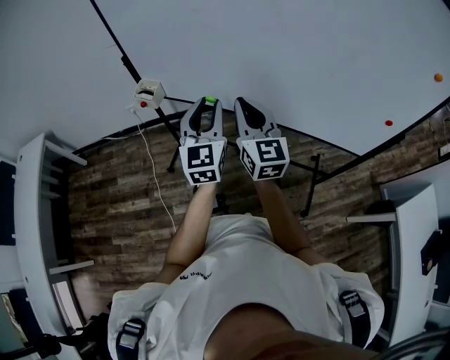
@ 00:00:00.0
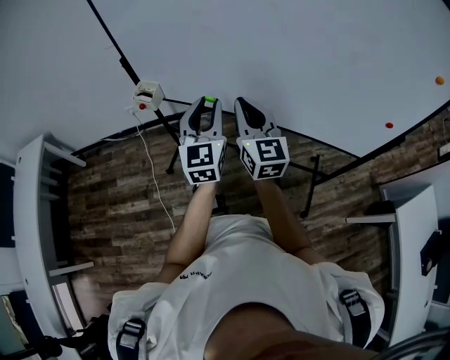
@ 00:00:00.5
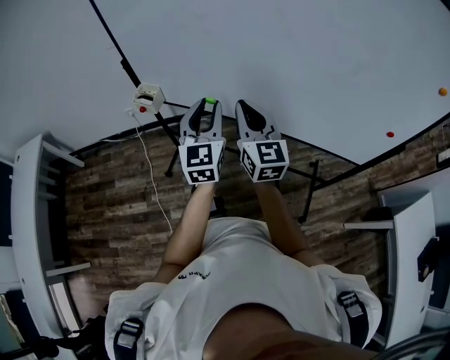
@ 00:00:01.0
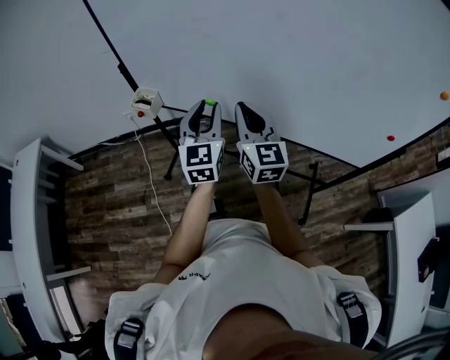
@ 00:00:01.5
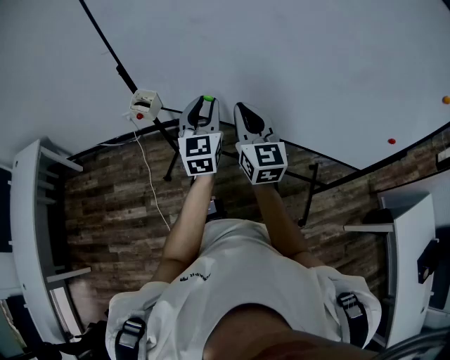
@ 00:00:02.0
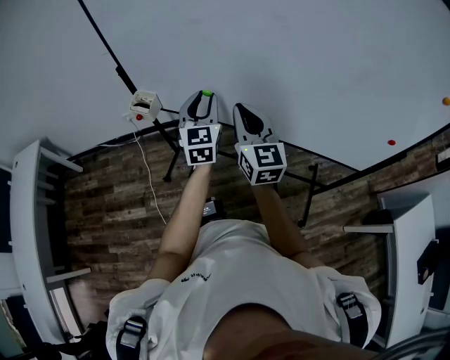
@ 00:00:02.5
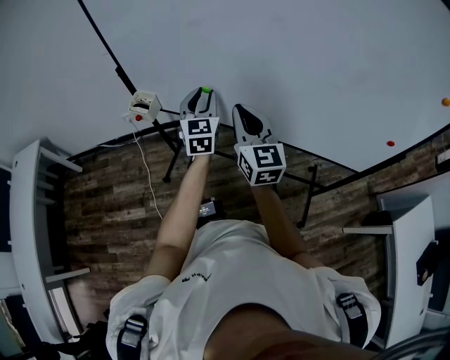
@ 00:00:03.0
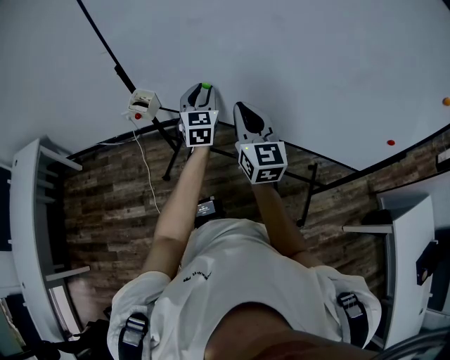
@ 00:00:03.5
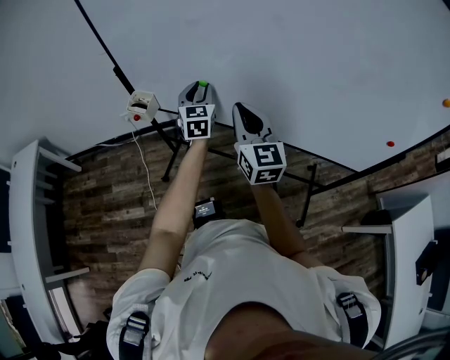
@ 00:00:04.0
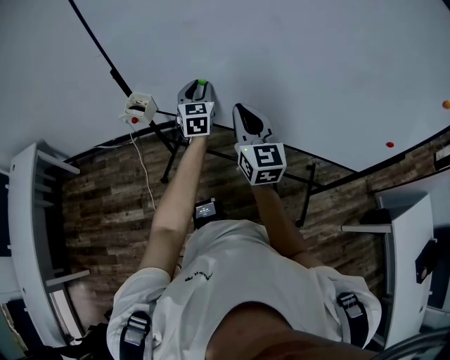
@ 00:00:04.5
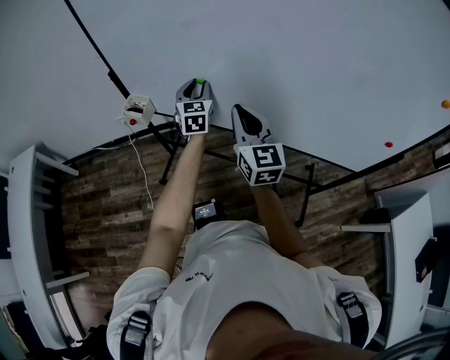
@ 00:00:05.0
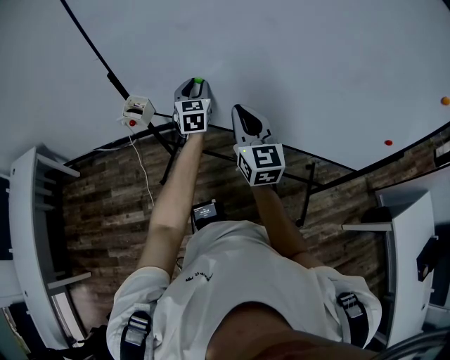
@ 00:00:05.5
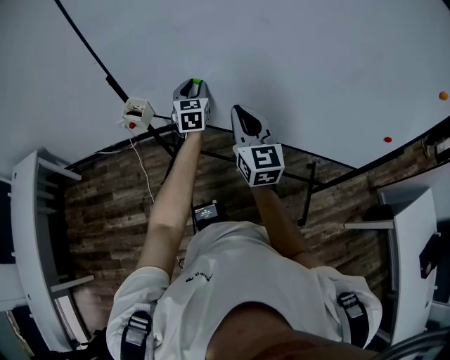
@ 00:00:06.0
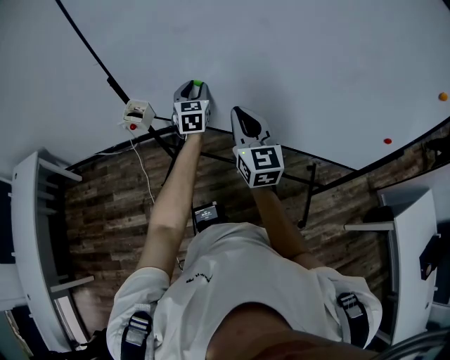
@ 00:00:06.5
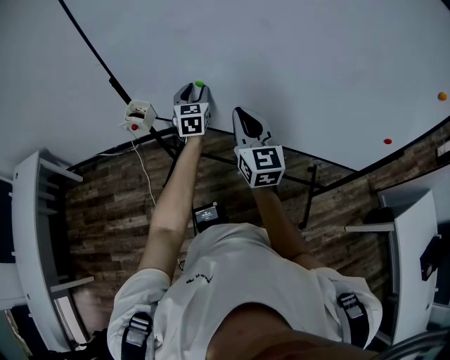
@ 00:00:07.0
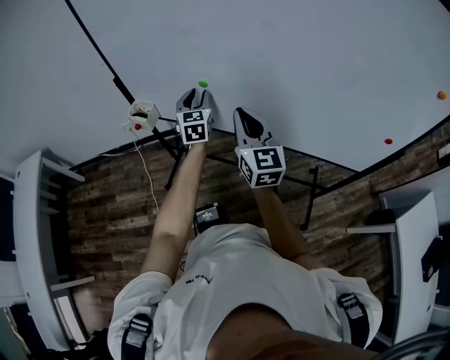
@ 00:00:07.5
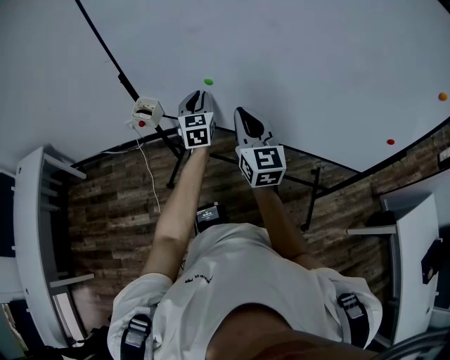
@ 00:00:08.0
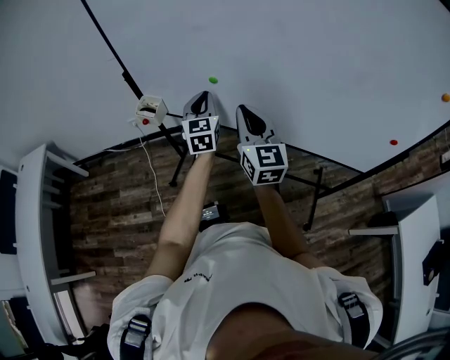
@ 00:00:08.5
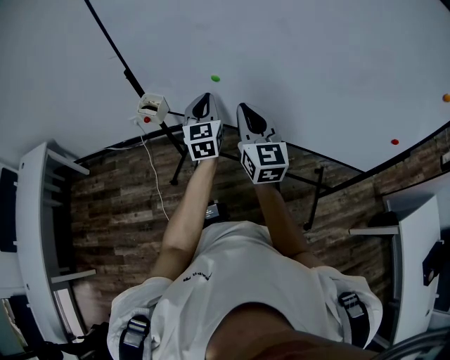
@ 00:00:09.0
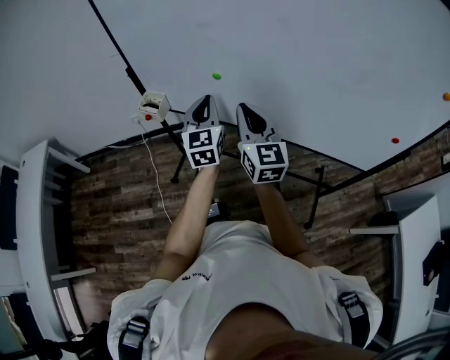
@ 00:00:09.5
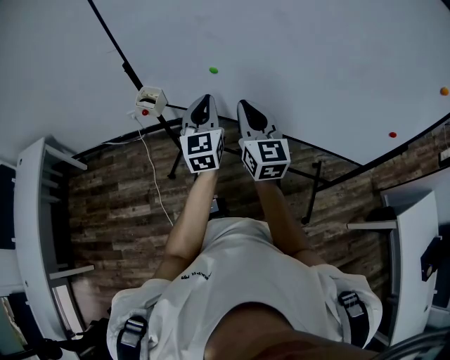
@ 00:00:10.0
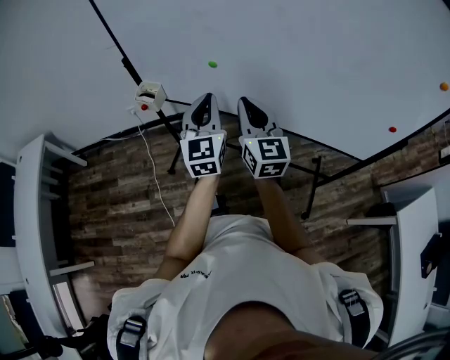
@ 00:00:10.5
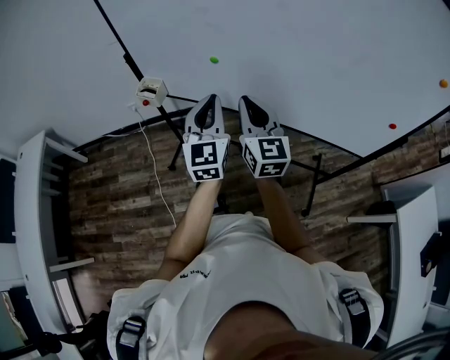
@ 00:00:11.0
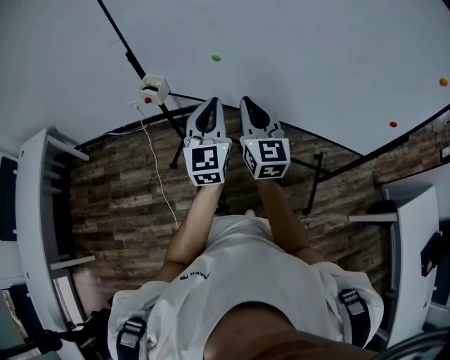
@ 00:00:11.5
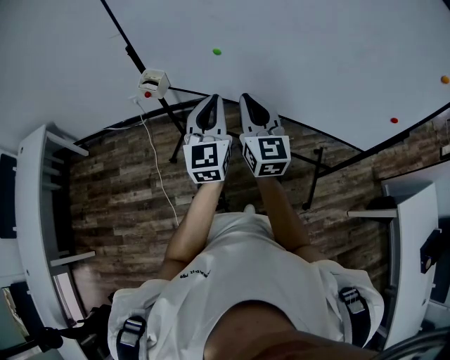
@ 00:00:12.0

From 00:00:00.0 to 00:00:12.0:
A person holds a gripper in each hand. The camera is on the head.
From 00:00:00.0 to 00:00:02.0: The left gripper travels forward by some 10 cm. The right gripper is displaced forward by approximately 5 cm.
From 00:00:02.0 to 00:00:04.0: The left gripper travels forward and downward by roughly 10 cm.
From 00:00:04.0 to 00:00:06.0: The grippers stay close to where they were, moving slightly.
From 00:00:06.0 to 00:00:08.0: The left gripper changes place by some 5 cm.
From 00:00:08.0 to 00:00:10.0: The left gripper moves backward and upward, approximately 15 cm.
From 00:00:10.0 to 00:00:12.0: The left gripper heads backward, covering some 10 cm.

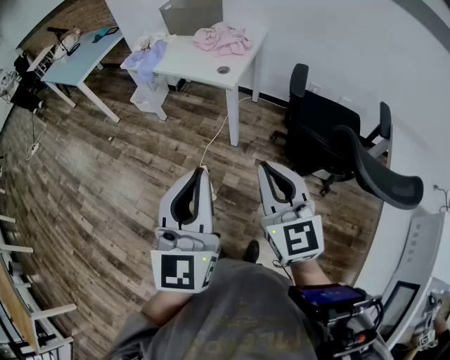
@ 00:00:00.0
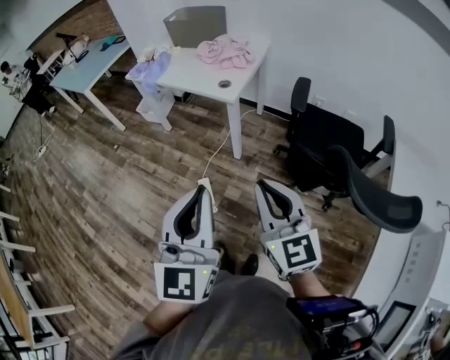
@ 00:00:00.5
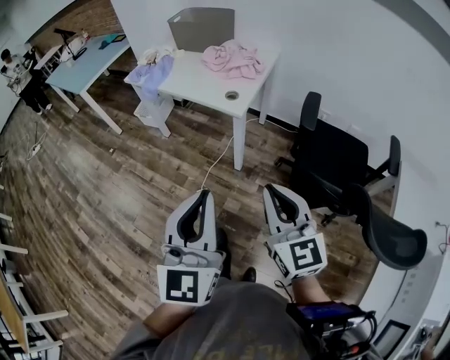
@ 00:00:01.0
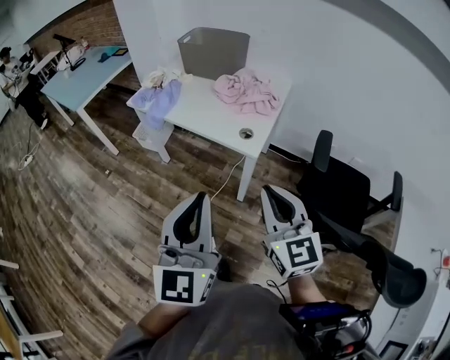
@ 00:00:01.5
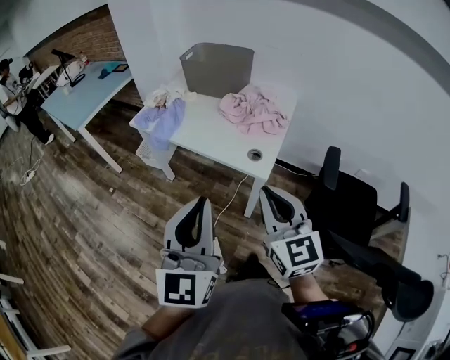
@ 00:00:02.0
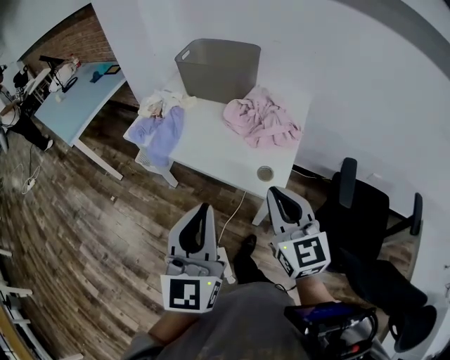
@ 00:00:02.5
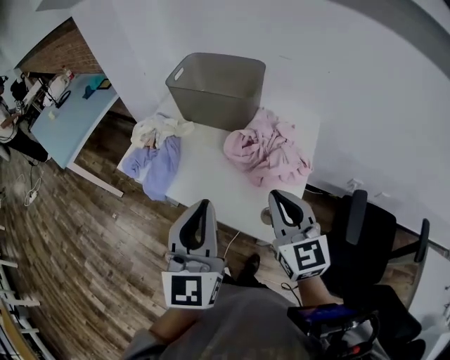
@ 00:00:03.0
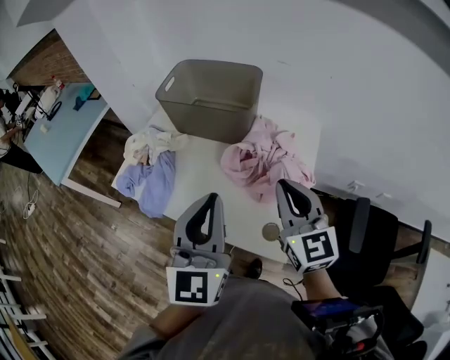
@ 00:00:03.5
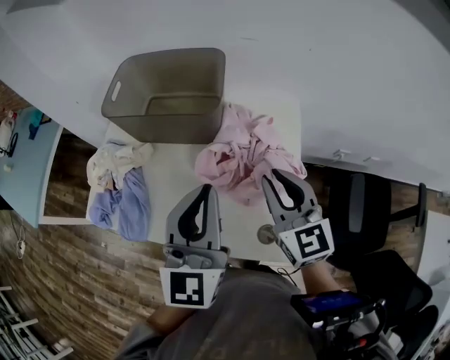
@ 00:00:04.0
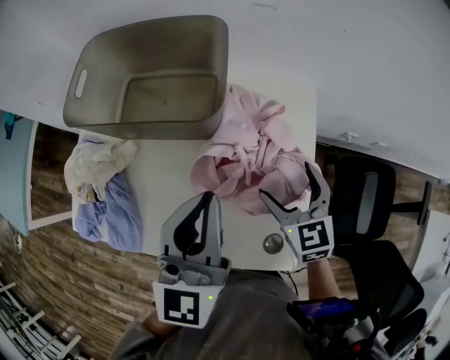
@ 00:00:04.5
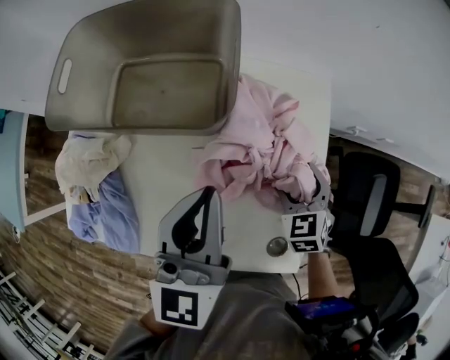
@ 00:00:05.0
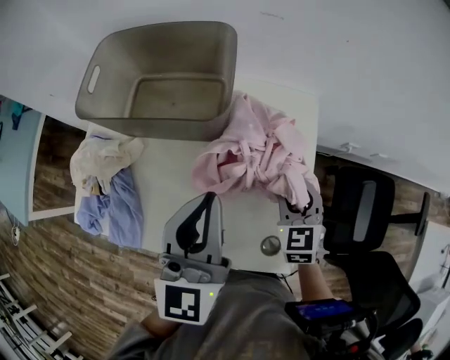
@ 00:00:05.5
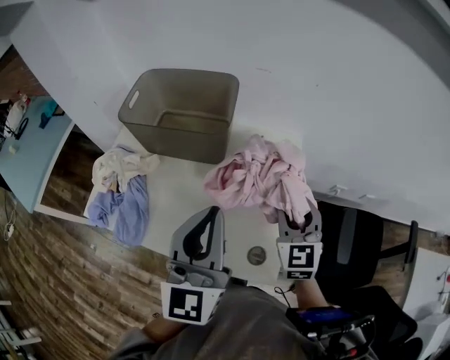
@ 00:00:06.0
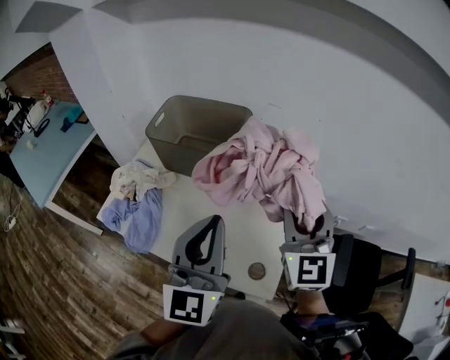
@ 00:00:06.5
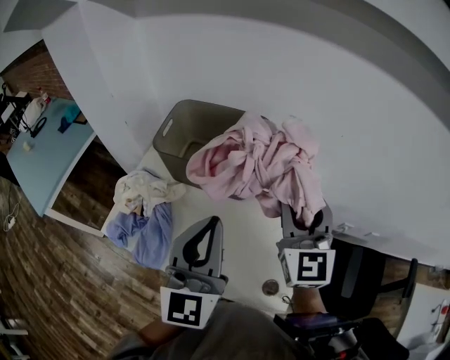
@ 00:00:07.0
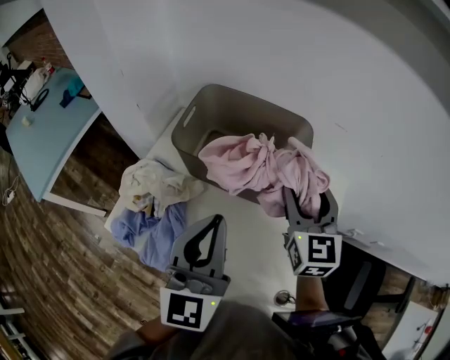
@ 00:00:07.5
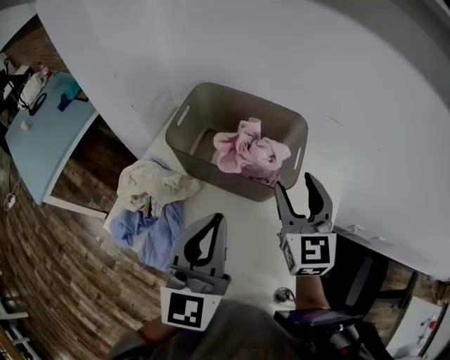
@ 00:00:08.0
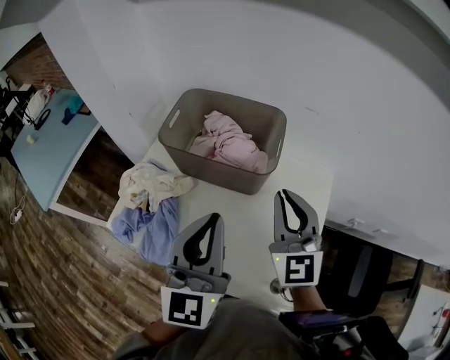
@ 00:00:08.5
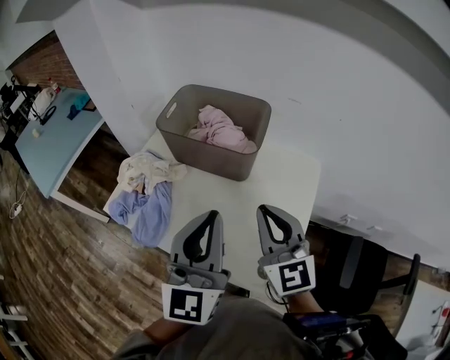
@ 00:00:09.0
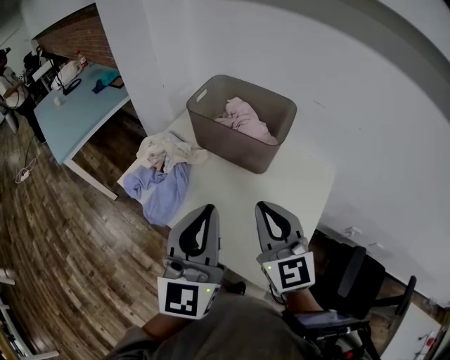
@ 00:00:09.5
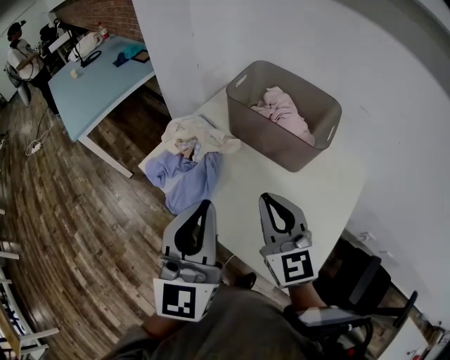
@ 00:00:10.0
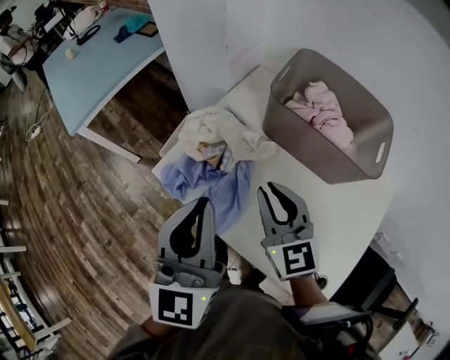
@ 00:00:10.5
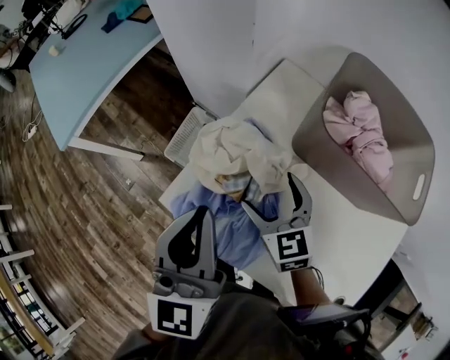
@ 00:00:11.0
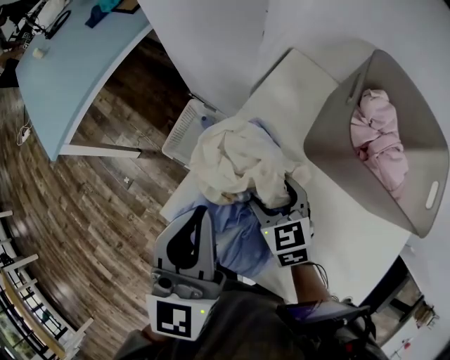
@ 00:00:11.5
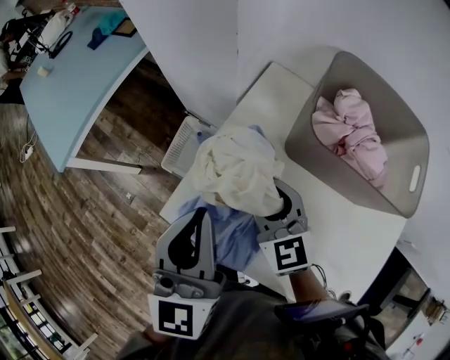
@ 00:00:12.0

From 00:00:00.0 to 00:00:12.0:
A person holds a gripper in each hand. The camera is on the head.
From 00:00:00.0 to 00:00:02.0: The two grippers go about 30 cm forward.
From 00:00:02.0 to 00:00:04.0: The pair of grippers is taken forward, approximately 50 cm.
From 00:00:04.0 to 00:00:06.0: The left gripper reaches approximately 10 cm forward, then returns. Meanwhile the right gripper travels to the right by approximately 5 cm, goes downward and returns, some 20 cm each way, and opens, then closes again.
From 00:00:06.0 to 00:00:08.0: The right gripper goes some 25 cm to the left, forward and upward, while the left gripper goes approximately 15 cm to the left and forward.
From 00:00:08.0 to 00:00:10.0: The grippers both shift backward and to the left by about 20 cm. The right gripper rotates roughly 30 degrees, and closes up.
From 00:00:10.0 to 00:00:12.0: The left gripper is displaced forward and to the left by some 30 cm, while the right gripper heads forward, downward and to the left, covering approximately 35 cm, and opens, then closes once more.

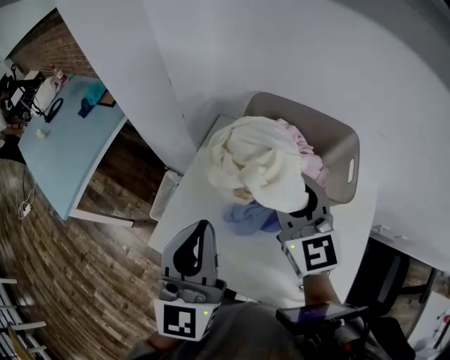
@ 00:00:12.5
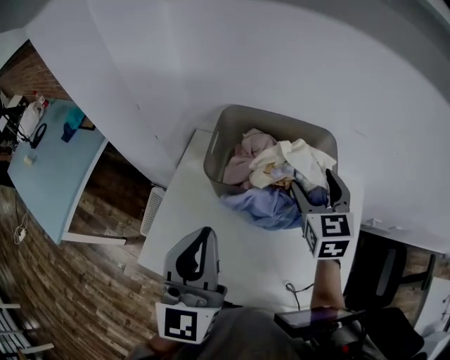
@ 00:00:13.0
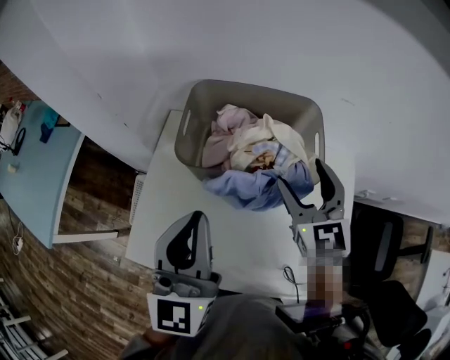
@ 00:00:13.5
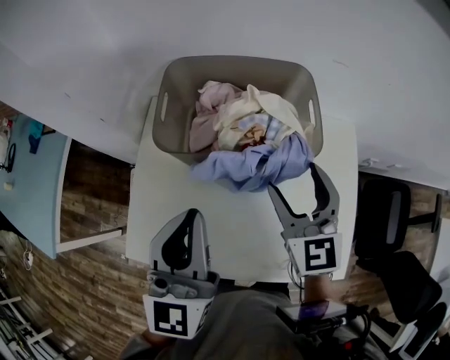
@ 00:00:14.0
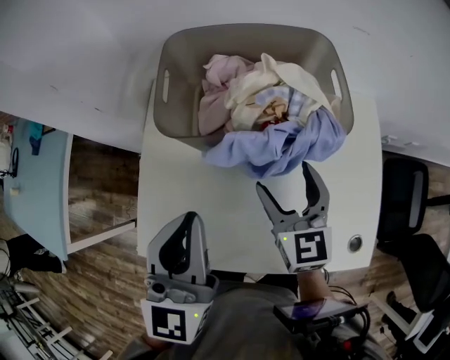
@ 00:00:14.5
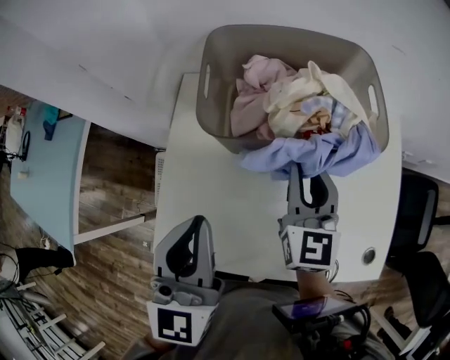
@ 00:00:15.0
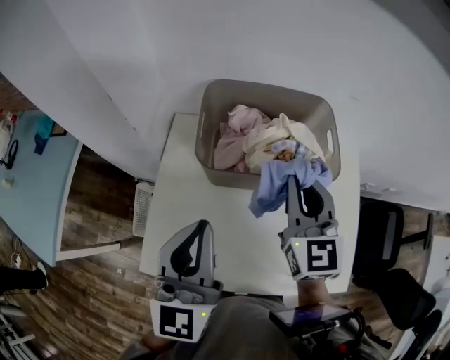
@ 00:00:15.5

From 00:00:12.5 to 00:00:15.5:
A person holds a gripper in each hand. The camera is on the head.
From 00:00:12.5 to 00:00:14.0: The right gripper is displaced to the right and downward by roughly 15 cm, turns by some 20 degrees, and opens, while the left gripper heads to the right, covering about 10 cm.
From 00:00:14.0 to 00:00:15.5: The right gripper moves to the left and upward, some 10 cm, and closes. Meanwhile the left gripper goes approximately 5 cm to the left.
